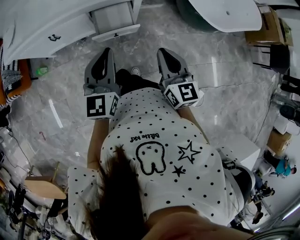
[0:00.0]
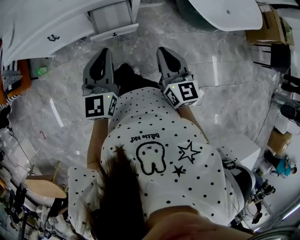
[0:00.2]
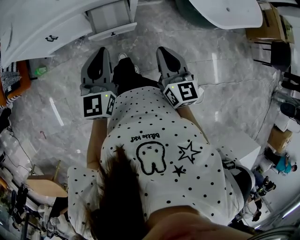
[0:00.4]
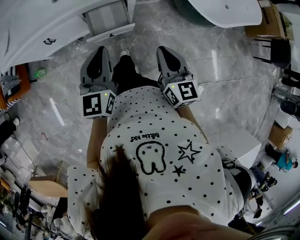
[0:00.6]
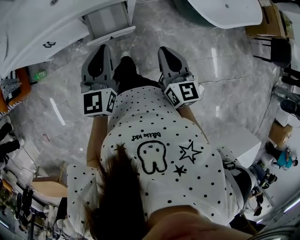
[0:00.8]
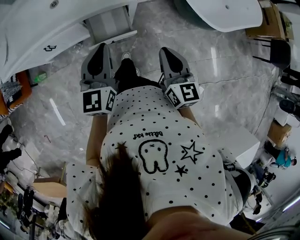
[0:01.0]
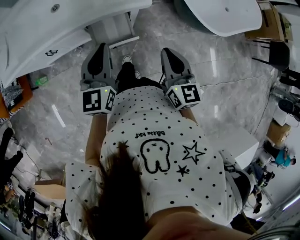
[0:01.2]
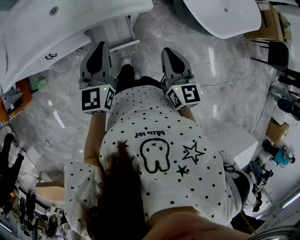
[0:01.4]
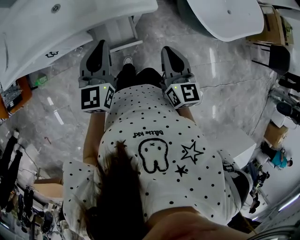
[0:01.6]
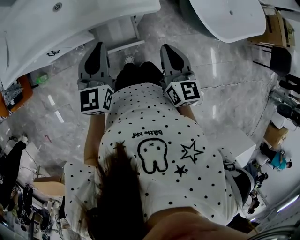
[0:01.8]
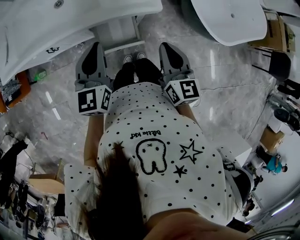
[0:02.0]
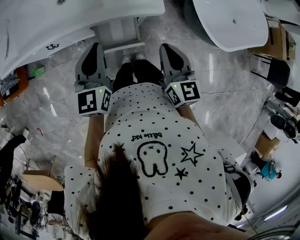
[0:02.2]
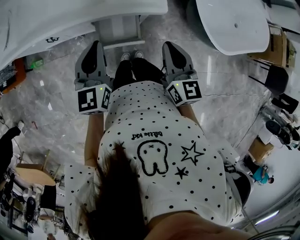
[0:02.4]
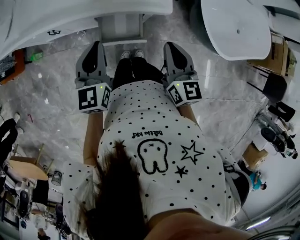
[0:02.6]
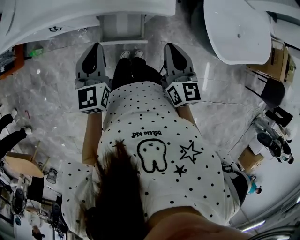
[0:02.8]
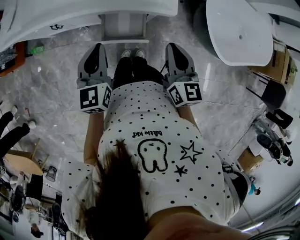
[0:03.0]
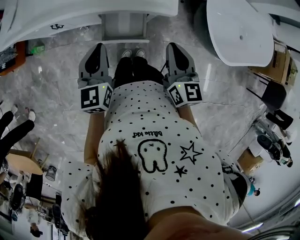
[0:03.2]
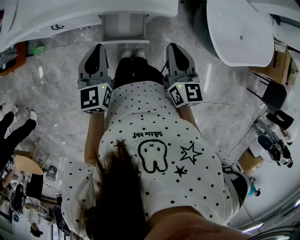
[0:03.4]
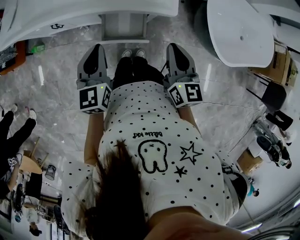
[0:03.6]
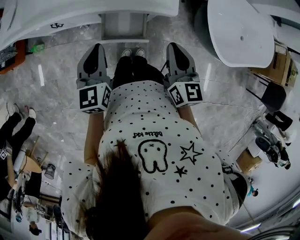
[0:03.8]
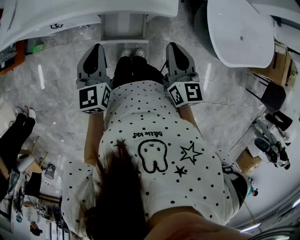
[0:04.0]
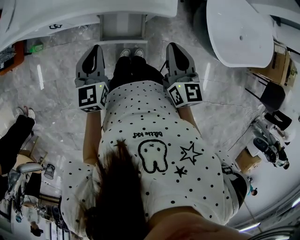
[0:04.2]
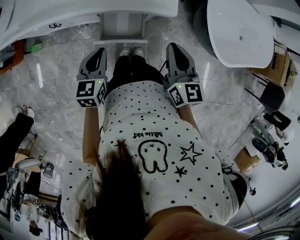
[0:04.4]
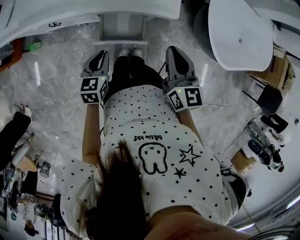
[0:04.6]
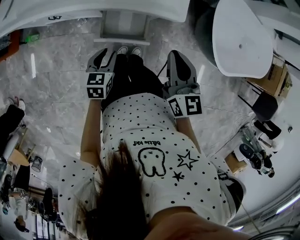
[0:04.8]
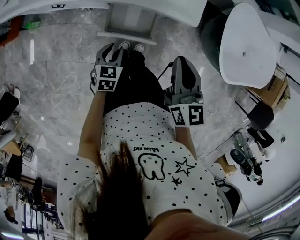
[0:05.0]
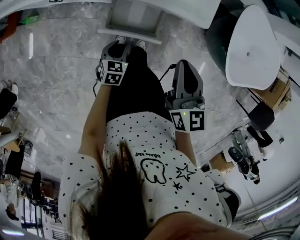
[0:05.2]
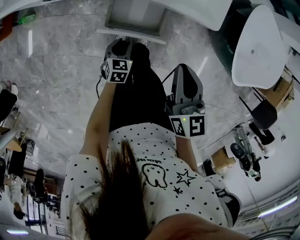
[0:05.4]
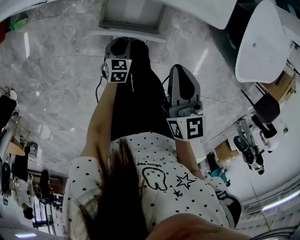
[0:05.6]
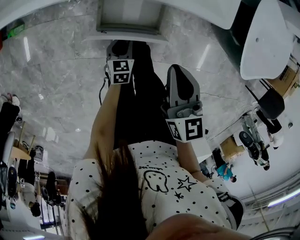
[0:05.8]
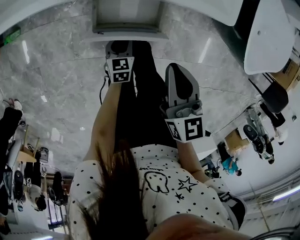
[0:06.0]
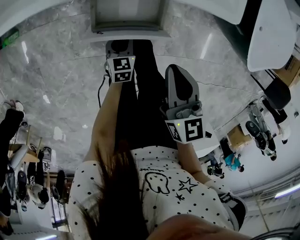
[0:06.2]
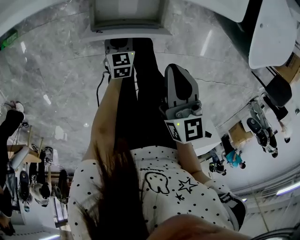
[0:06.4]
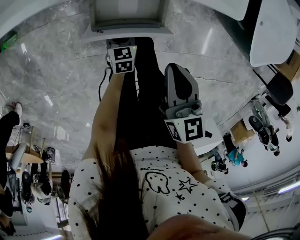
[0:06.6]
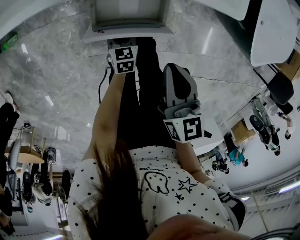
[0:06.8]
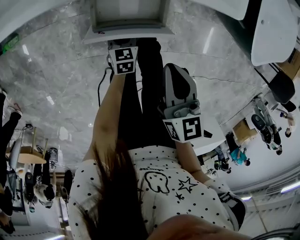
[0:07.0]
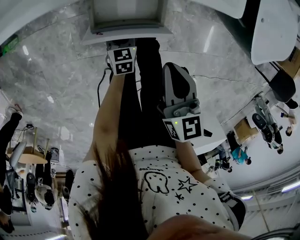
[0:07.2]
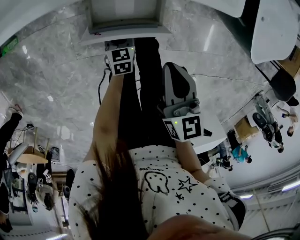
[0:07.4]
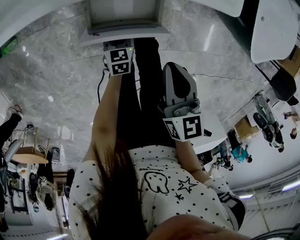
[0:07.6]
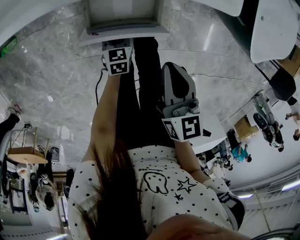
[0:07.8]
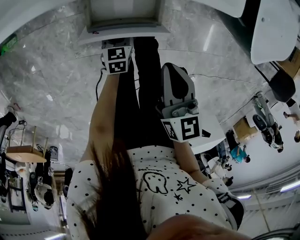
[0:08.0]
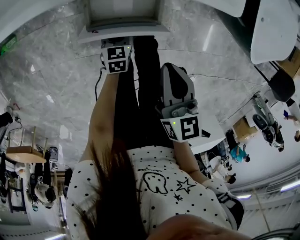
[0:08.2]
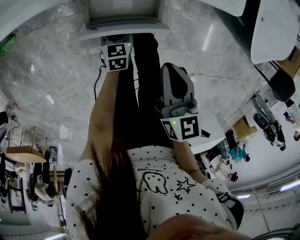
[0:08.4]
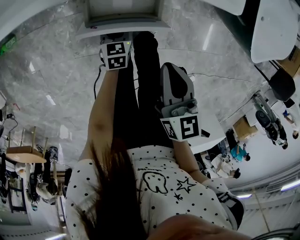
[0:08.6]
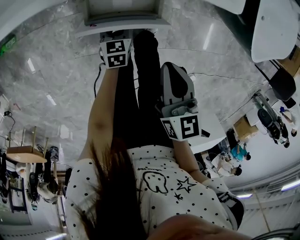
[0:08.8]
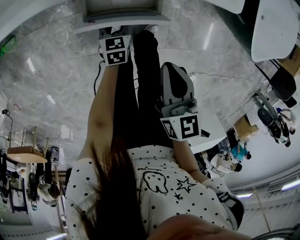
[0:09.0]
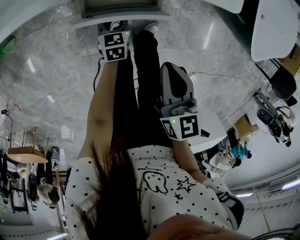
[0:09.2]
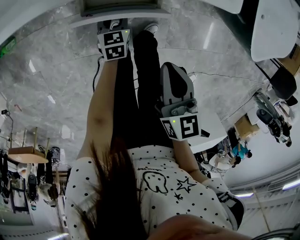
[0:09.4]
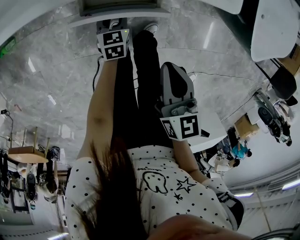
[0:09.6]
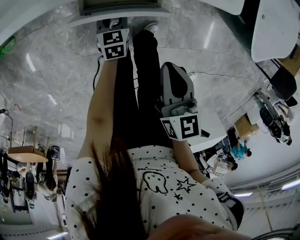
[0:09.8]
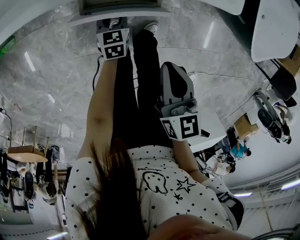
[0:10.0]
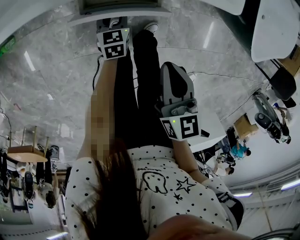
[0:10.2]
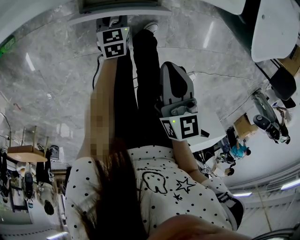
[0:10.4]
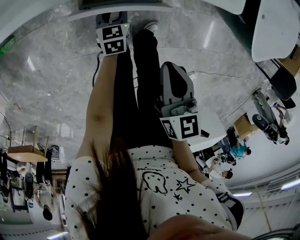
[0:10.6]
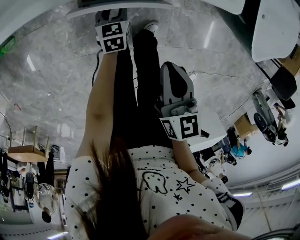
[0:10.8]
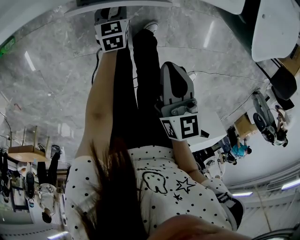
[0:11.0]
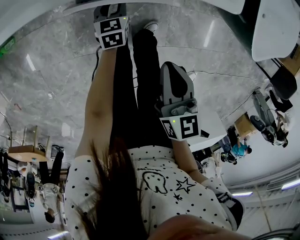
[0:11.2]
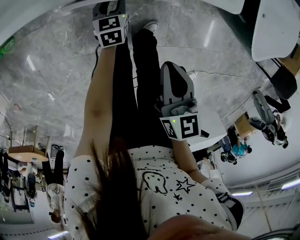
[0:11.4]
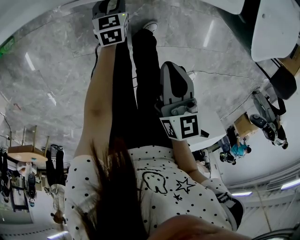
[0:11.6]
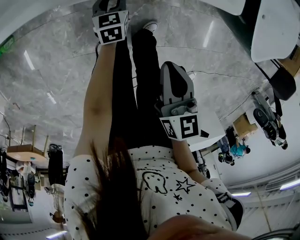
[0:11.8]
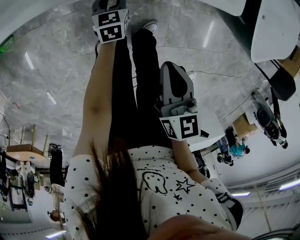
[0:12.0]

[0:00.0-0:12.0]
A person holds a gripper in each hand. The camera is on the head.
0:00.0 to 0:01.6: Both grippers travel together forward, about 20 cm.
0:01.6 to 0:03.0: The left gripper ends up about 5 cm from where it was. Meanwhile the right gripper shifts by approximately 5 cm.
0:03.0 to 0:04.4: The left gripper shifts roughly 10 cm downward.
0:04.4 to 0:06.0: The right gripper shifts roughly 20 cm downward and to the left. Meanwhile the left gripper is displaced downward by some 35 cm, and opens.
0:06.0 to 0:09.0: The grippers move only a little.
0:09.0 to 0:10.4: The grippers move only a little.
0:10.4 to 0:12.0: The left gripper is displaced forward by roughly 5 cm.

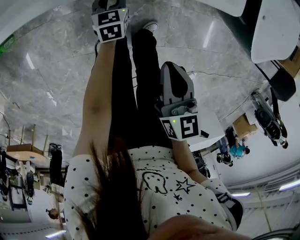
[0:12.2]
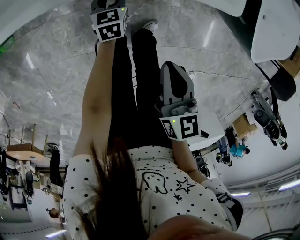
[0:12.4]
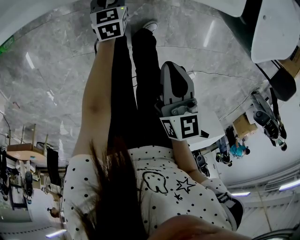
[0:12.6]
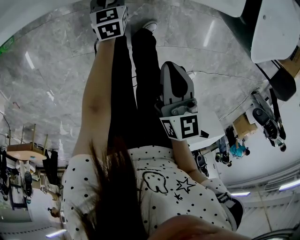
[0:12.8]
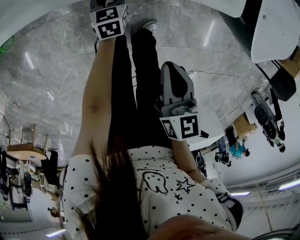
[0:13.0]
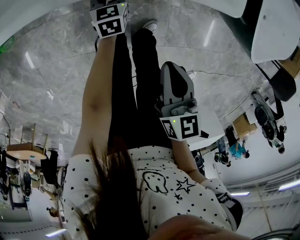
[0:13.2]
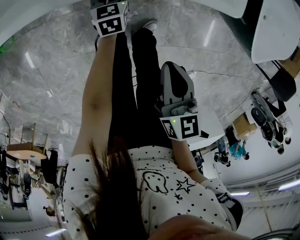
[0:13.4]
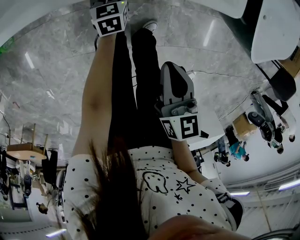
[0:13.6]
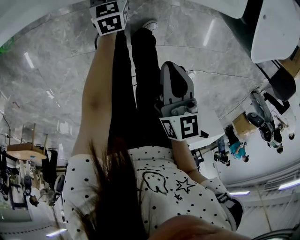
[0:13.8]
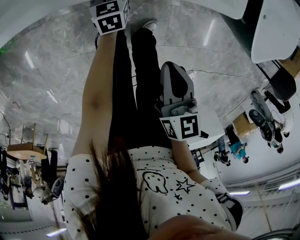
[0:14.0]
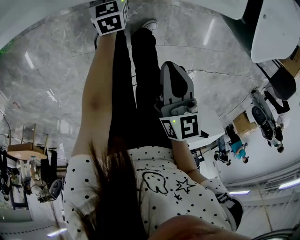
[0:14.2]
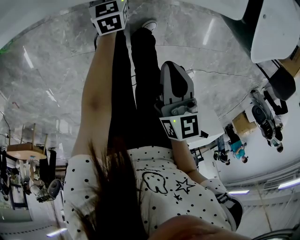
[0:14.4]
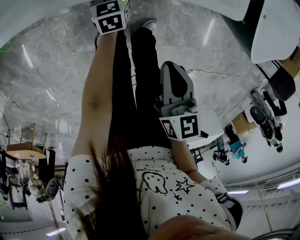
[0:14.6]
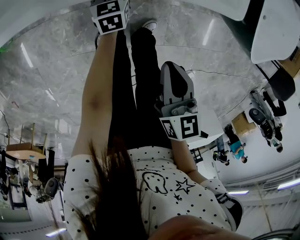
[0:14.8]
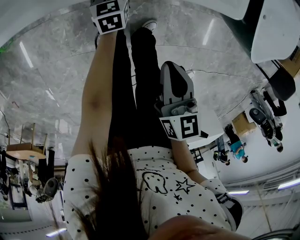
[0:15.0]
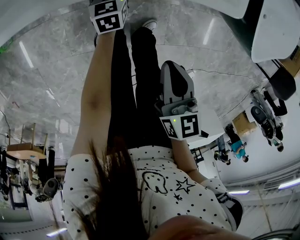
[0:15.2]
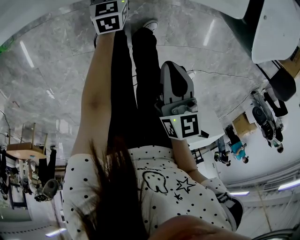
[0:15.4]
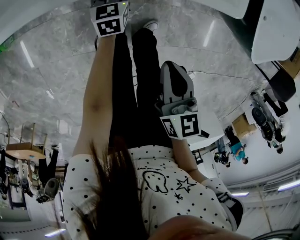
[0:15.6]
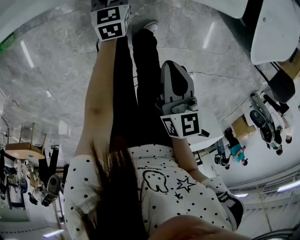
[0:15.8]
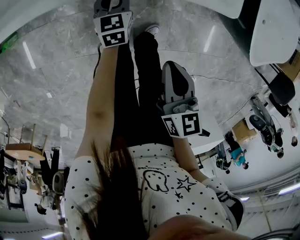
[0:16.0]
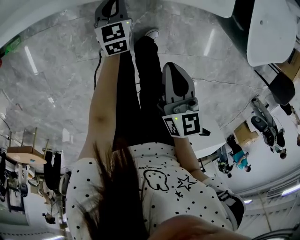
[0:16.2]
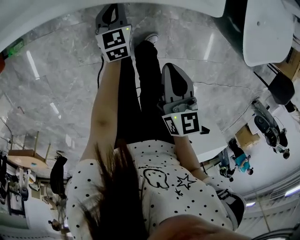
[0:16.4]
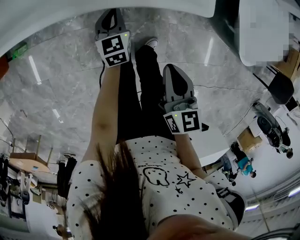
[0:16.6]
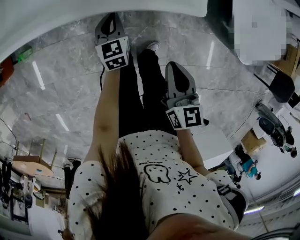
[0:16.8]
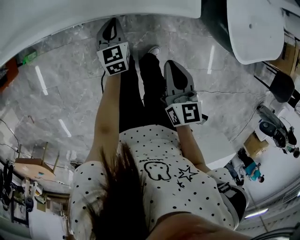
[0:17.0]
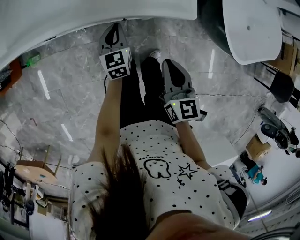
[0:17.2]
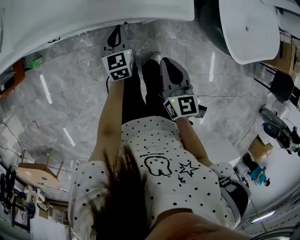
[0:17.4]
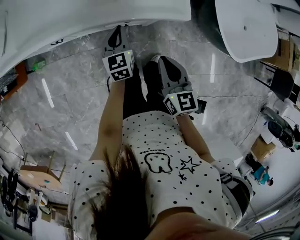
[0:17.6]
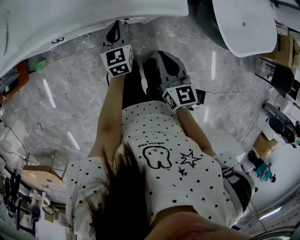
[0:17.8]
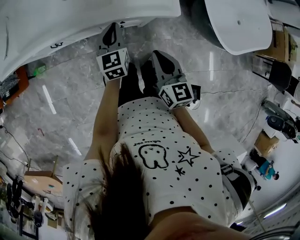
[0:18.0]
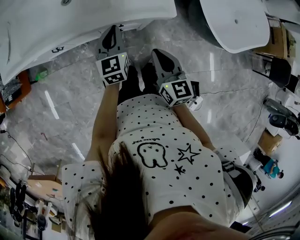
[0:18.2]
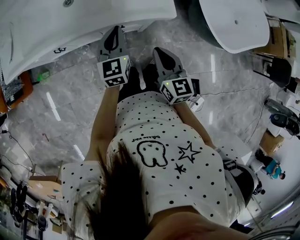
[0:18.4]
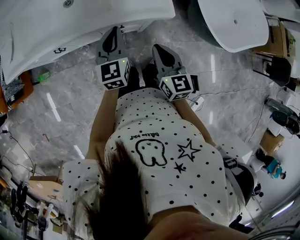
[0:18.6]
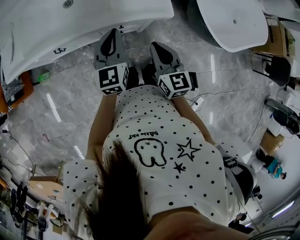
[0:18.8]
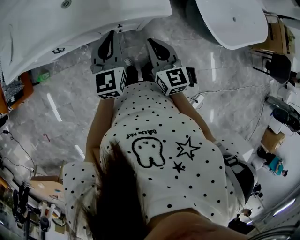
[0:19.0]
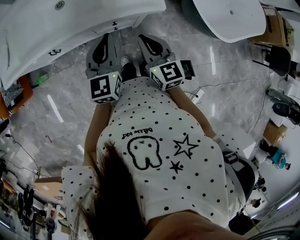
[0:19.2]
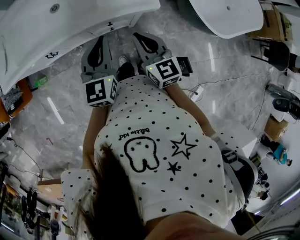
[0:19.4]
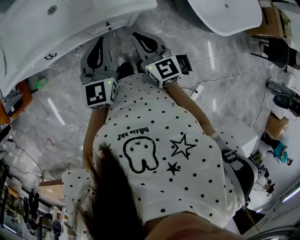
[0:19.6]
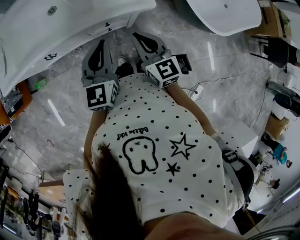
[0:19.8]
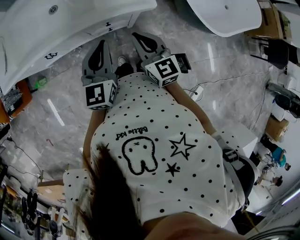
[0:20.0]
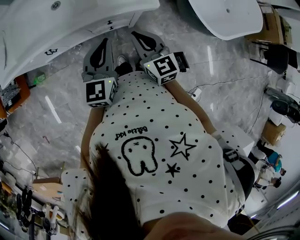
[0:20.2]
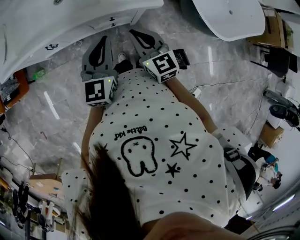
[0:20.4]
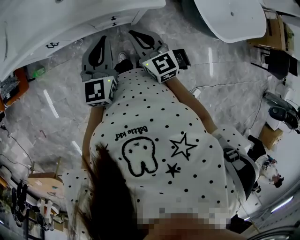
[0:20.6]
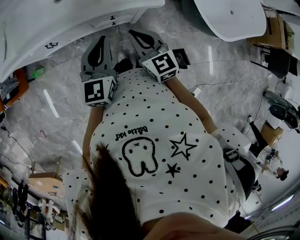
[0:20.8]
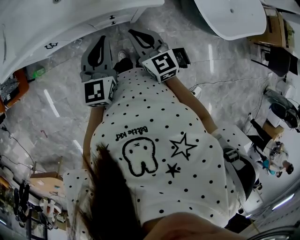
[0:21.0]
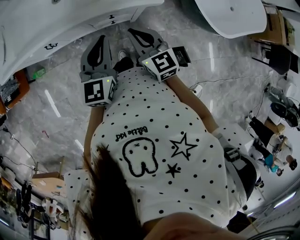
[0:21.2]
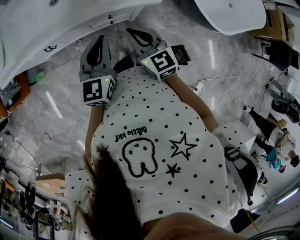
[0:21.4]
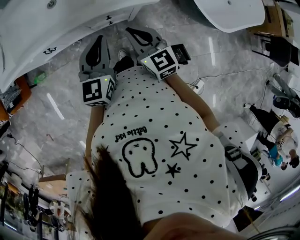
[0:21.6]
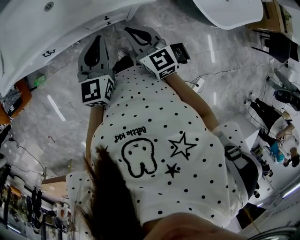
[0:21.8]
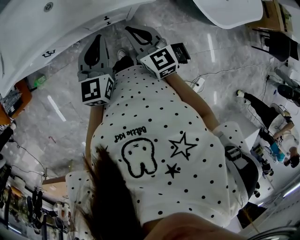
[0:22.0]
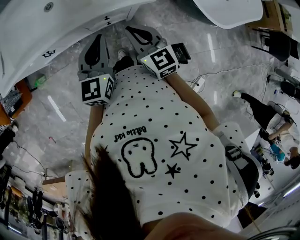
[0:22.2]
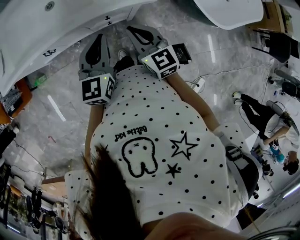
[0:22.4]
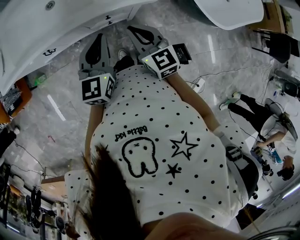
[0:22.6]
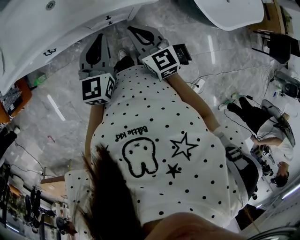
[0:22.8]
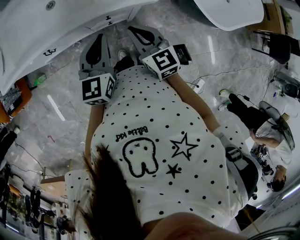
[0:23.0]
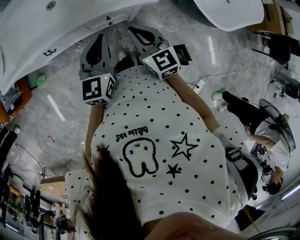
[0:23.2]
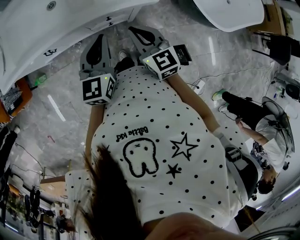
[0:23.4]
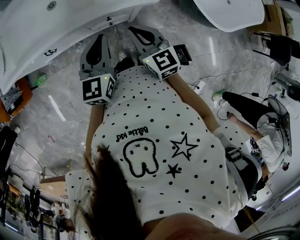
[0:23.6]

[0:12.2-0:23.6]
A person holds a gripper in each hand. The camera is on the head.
0:12.2 to 0:13.6: The grippers move only a little.
0:13.6 to 0:15.0: Both grippers stay put.
0:15.0 to 0:16.4: The left gripper goes roughly 10 cm upward, and closes up.
0:16.4 to 0:17.8: The right gripper shifts about 10 cm upward. Meanwhile the left gripper shifts approximately 20 cm upward.
0:17.8 to 0:19.4: The right gripper ends up roughly 5 cm from where it was; the left gripper travels upward and backward by some 20 cm.
0:19.4 to 0:22.2: The grippers move only a little.
0:22.2 to 0:23.6: Both grippers stay about where they are.

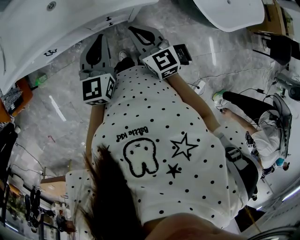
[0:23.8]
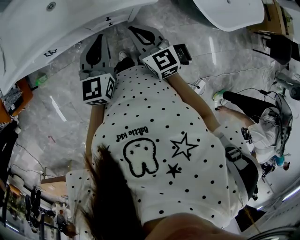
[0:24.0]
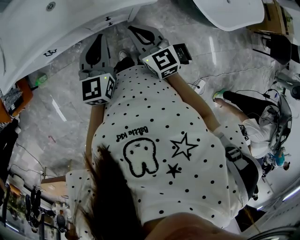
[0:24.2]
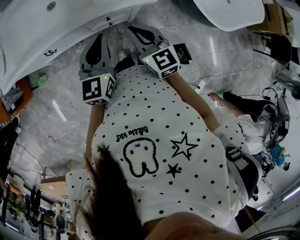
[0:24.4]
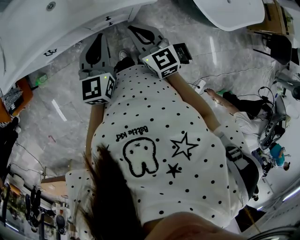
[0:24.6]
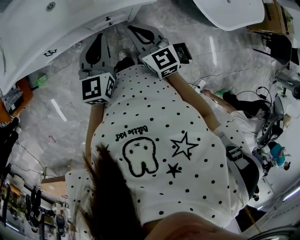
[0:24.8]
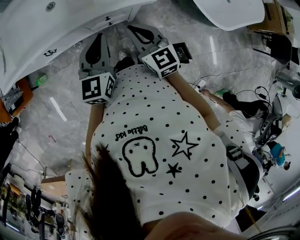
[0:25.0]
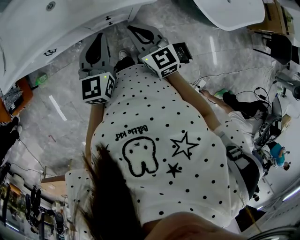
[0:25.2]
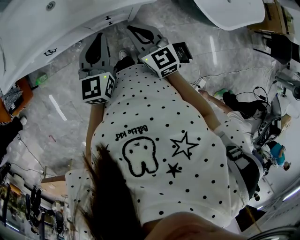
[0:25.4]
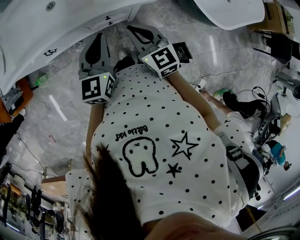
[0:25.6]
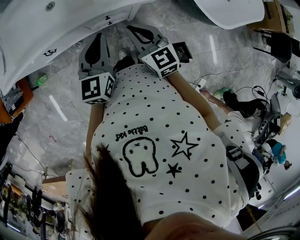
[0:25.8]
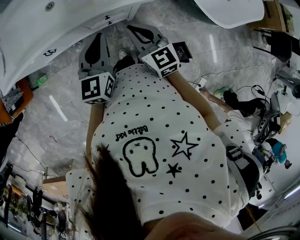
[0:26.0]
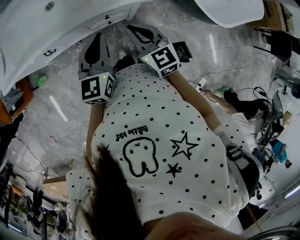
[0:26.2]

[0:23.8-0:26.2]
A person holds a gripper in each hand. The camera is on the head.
0:23.8 to 0:26.2: Neither gripper changes place.
